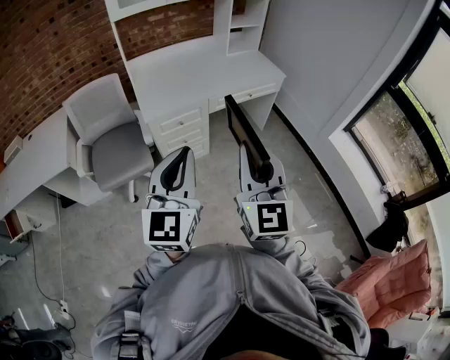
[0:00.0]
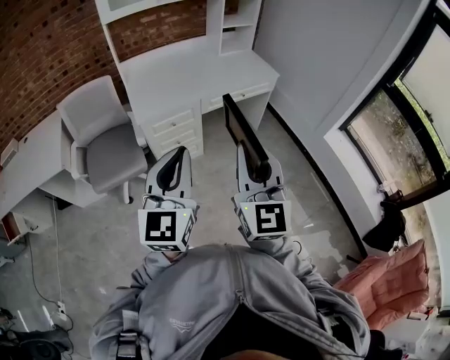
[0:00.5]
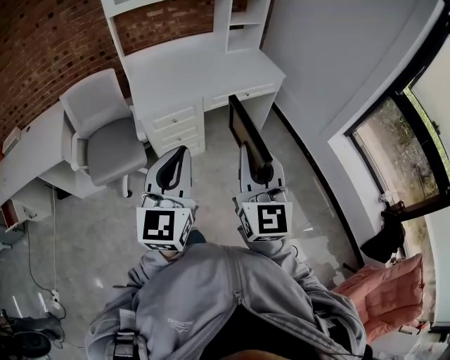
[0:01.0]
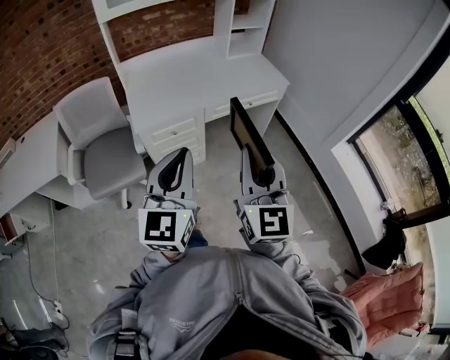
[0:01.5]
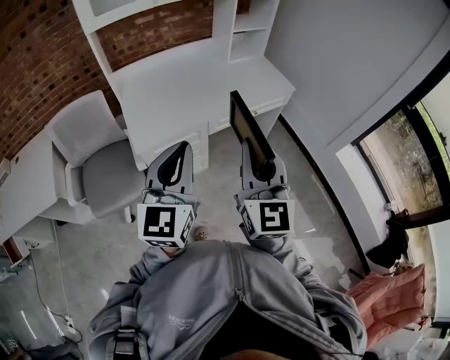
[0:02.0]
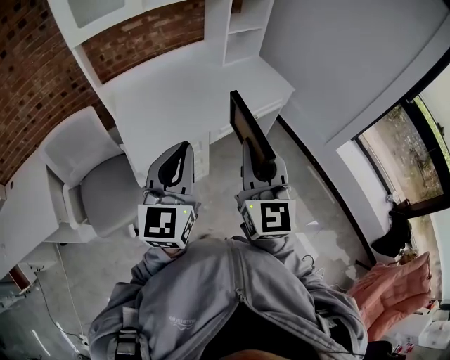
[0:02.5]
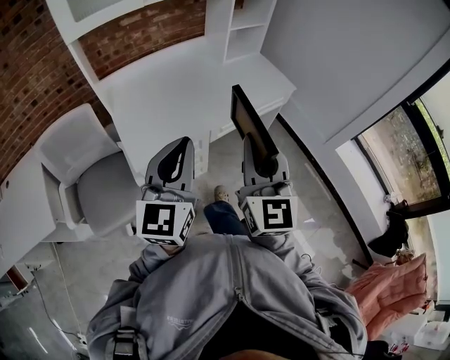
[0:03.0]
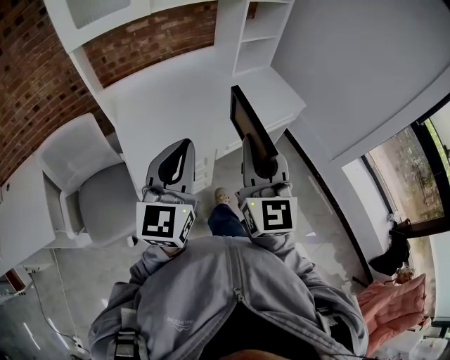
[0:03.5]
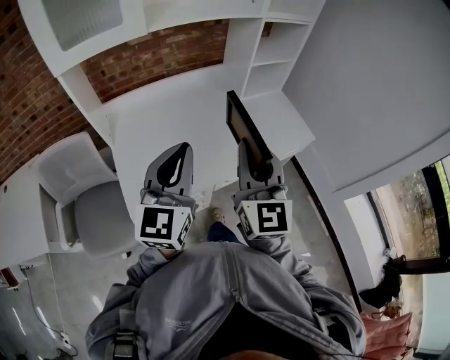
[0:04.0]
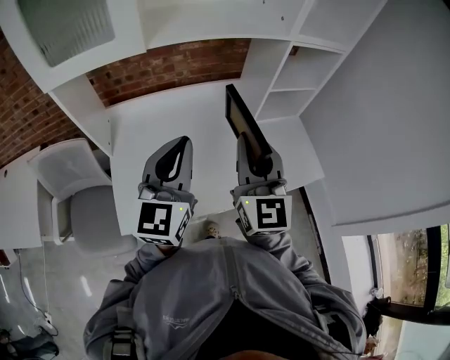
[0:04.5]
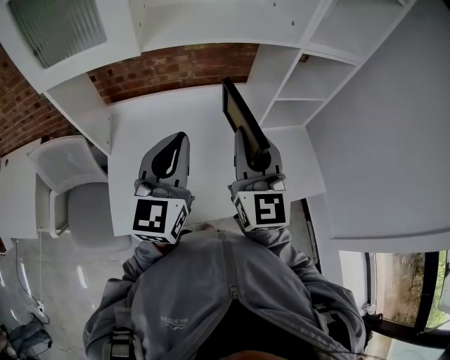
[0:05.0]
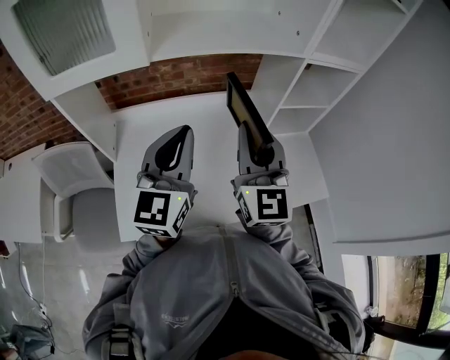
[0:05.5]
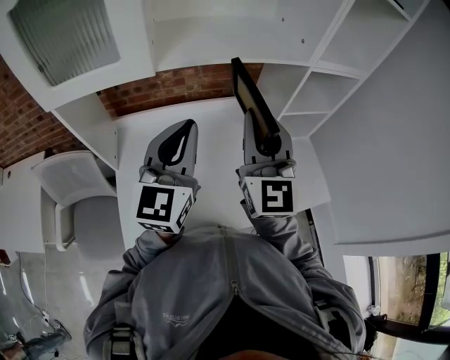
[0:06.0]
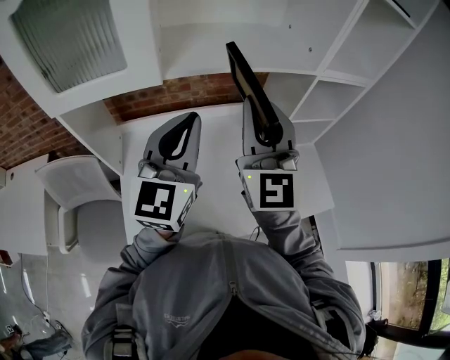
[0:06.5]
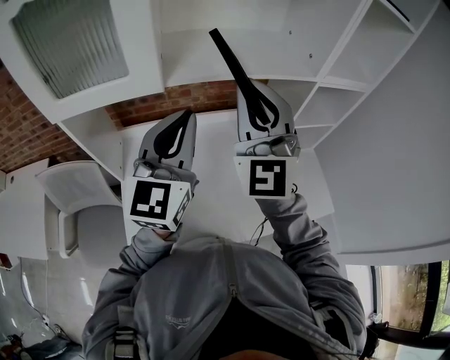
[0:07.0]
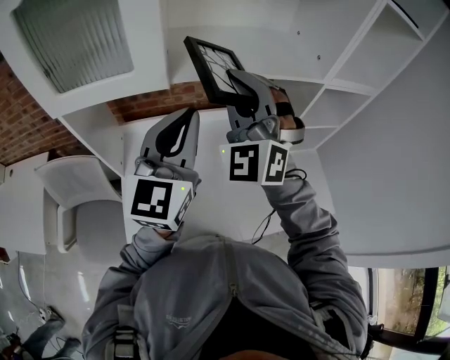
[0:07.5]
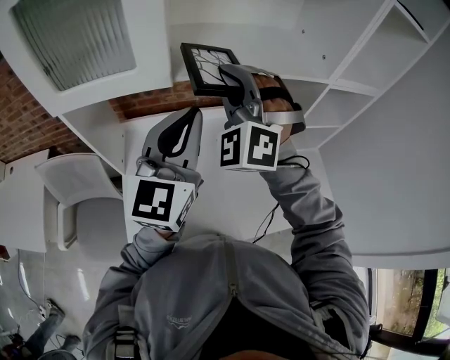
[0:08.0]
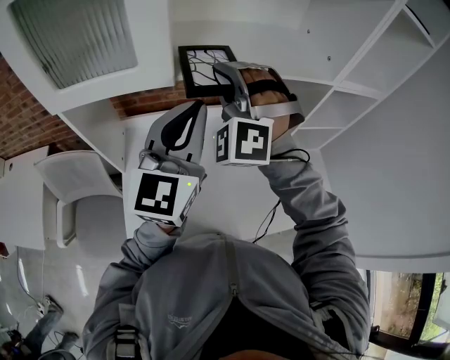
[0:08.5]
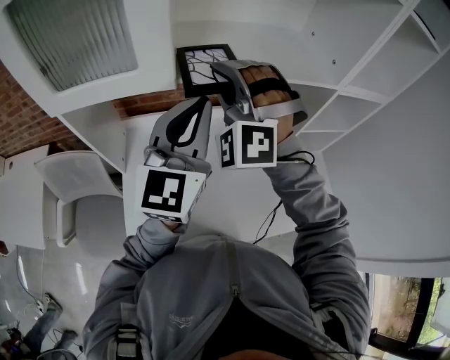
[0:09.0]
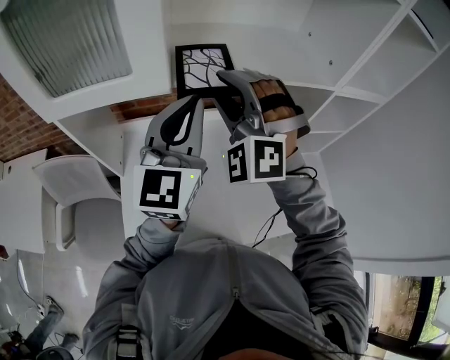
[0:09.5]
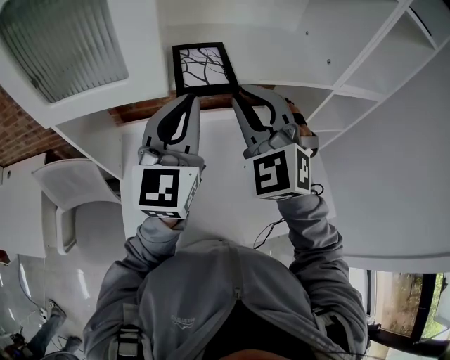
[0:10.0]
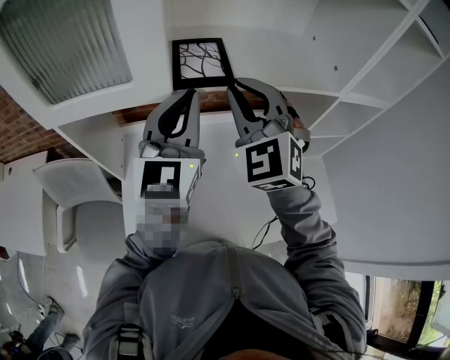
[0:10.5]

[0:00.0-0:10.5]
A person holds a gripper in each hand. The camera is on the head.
0.0 to 2.0 s: The grippers both shift forward by some 25 cm.
2.0 to 4.0 s: Both grippers travel together forward, roughly 35 cm.
4.0 to 6.5 s: The grippers both shift forward by about 30 cm.
6.5 to 8.5 s: The right gripper shifts roughly 15 cm forward and to the left, and twists approximately 60 degrees counterclockwise, seen from behind.
8.5 to 10.5 s: The left gripper is displaced forward by some 5 cm, while the right gripper rotates roughly 30 degrees, and opens, then closes again.

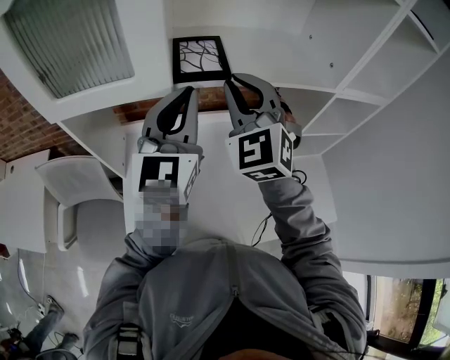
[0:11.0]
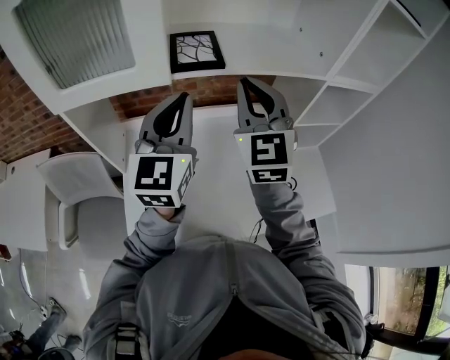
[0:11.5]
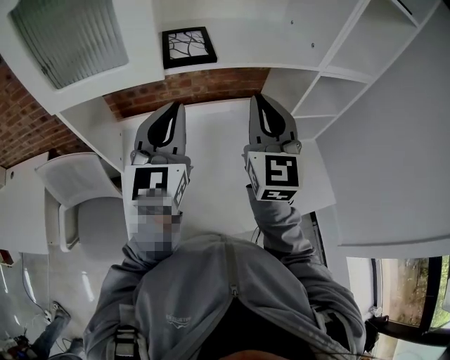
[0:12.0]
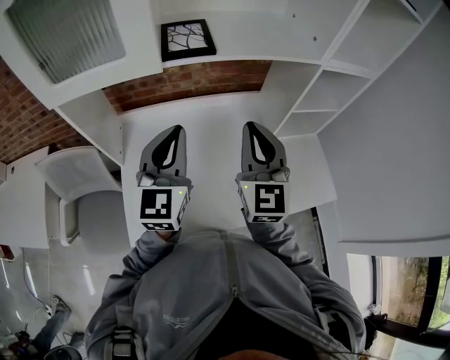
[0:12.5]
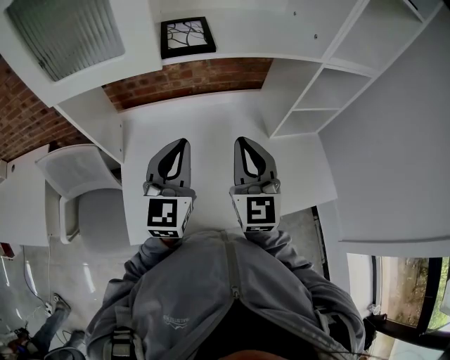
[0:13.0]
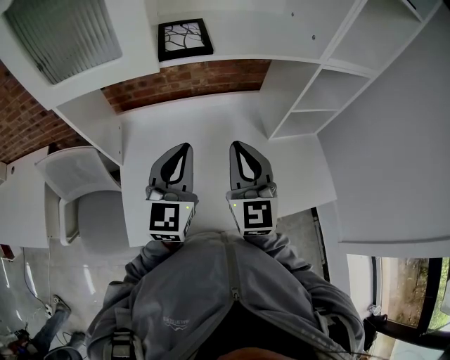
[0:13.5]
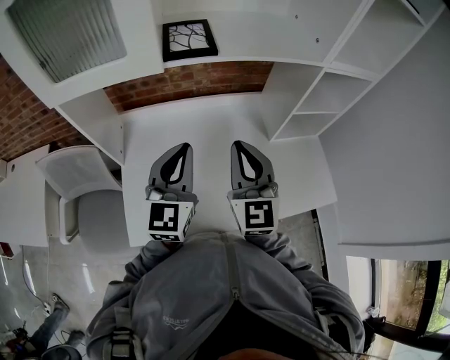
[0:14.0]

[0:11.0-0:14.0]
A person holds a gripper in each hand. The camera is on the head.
11.0 to 12.5 s: The right gripper shifts some 15 cm backward, to the right and downward, and turns by roughly 30 degrees, while the left gripper goes roughly 15 cm backward and downward.
12.5 to 14.0 s: There are only small adjustments of the grippers.

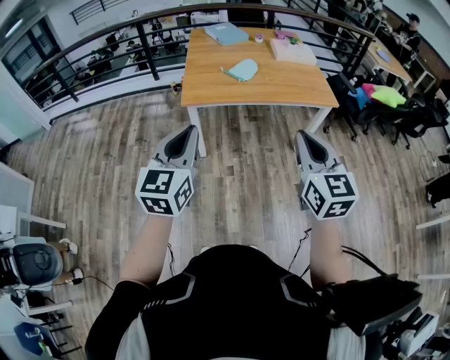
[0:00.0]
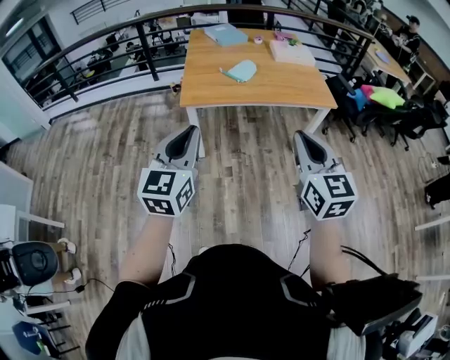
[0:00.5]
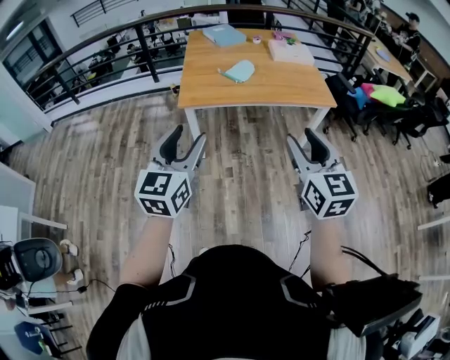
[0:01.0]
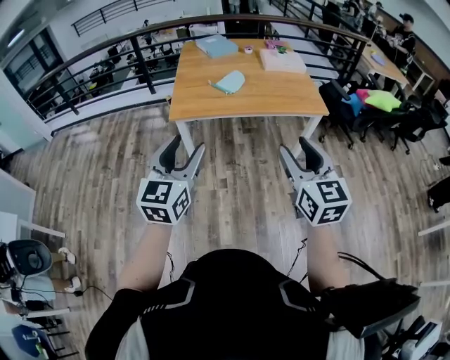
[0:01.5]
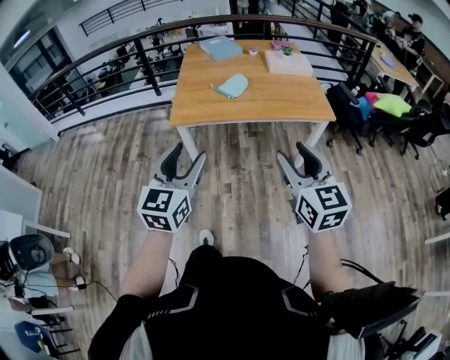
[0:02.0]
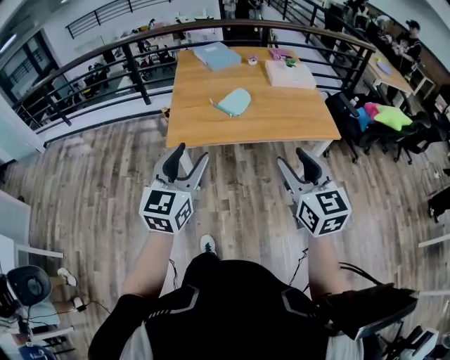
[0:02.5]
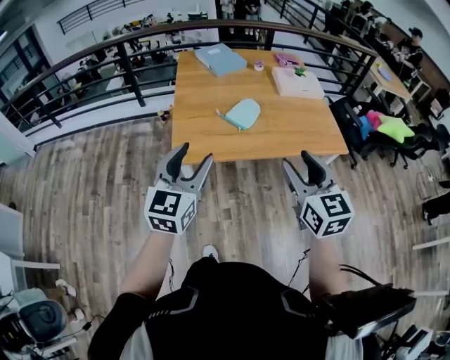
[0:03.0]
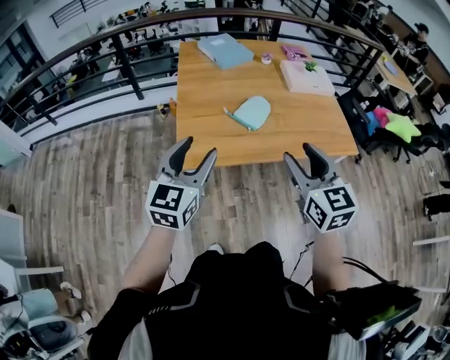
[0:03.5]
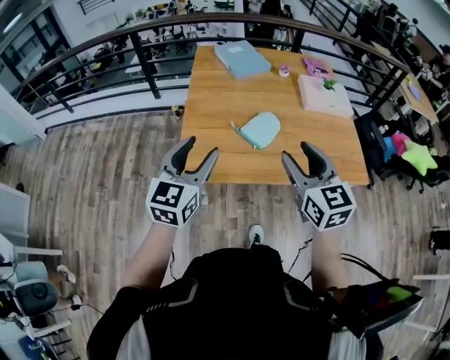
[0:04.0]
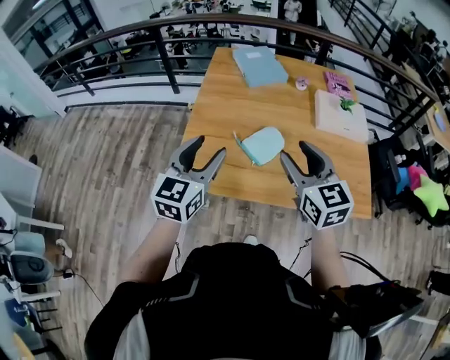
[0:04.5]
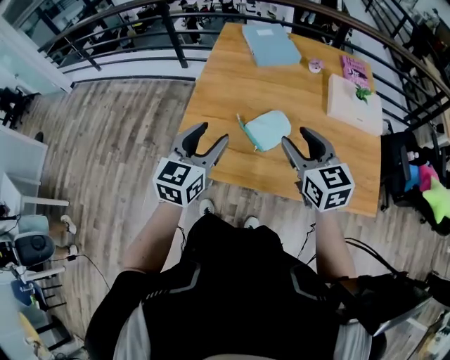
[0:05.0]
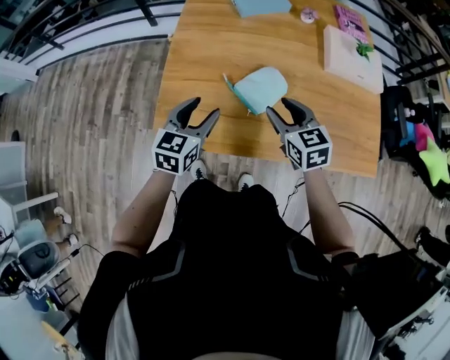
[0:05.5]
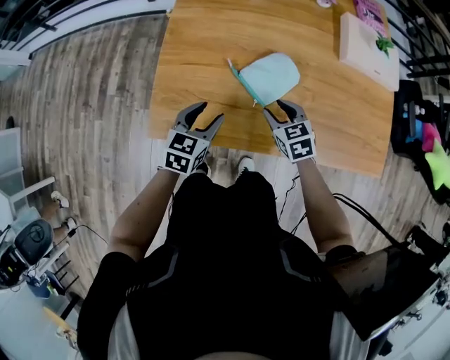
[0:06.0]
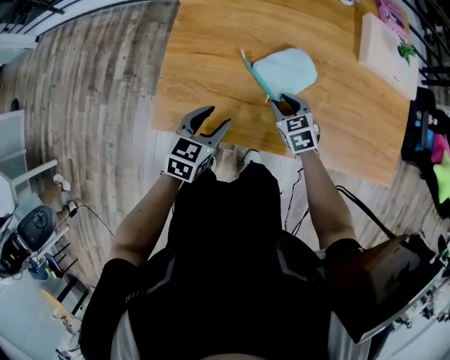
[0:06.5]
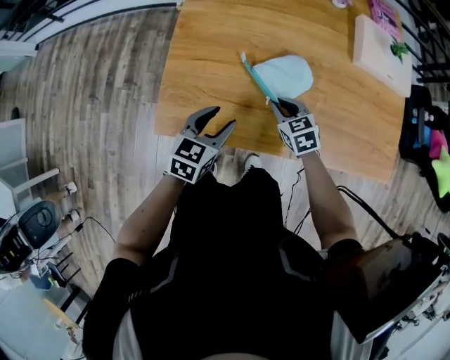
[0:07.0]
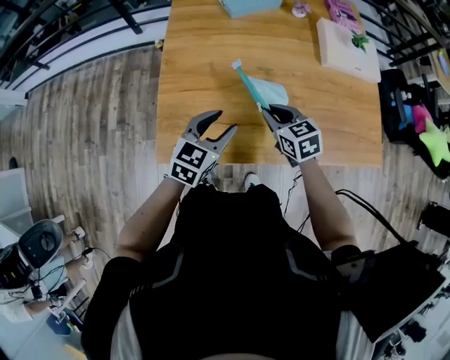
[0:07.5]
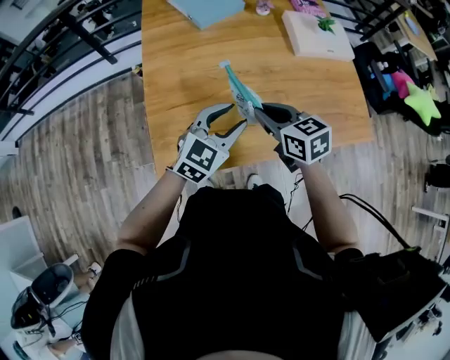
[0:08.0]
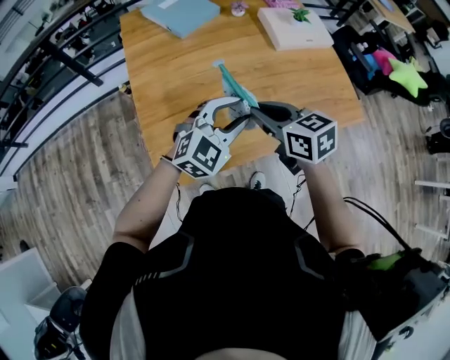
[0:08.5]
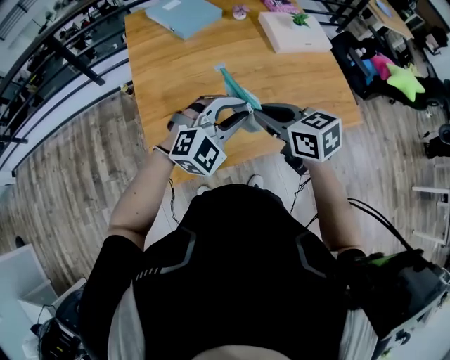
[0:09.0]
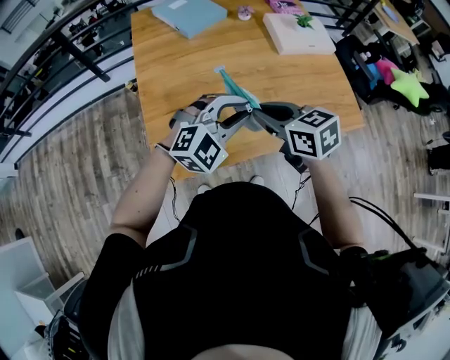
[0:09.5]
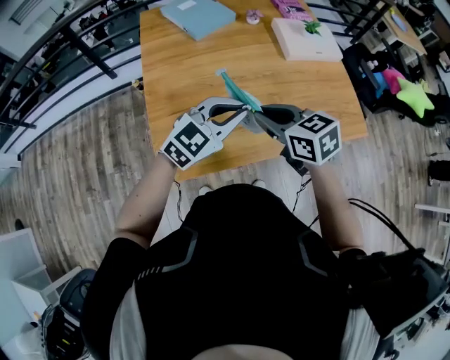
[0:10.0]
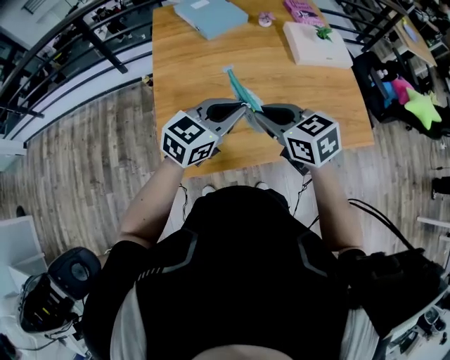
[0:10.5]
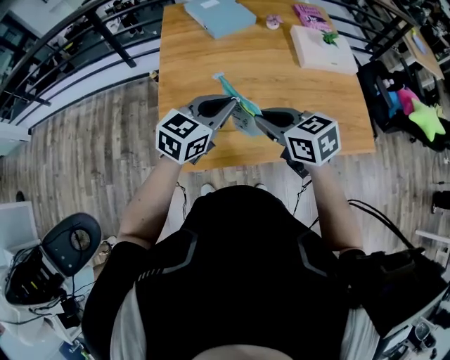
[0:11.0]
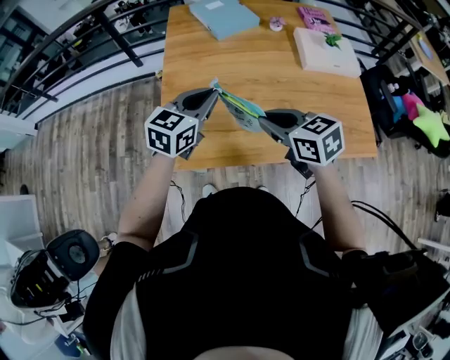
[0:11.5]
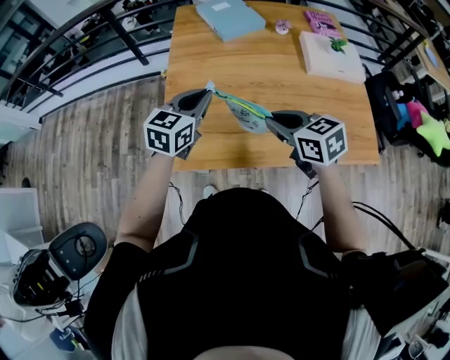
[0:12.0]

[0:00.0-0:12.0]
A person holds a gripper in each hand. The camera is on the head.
0.0 to 2.0 s: The right gripper heads to the right and forward, covering approximately 10 cm, and opens up. The left gripper travels to the right by about 10 cm, and opens its fingers.
2.0 to 4.0 s: The pair of grippers is taken forward, approximately 40 cm.
4.0 to 6.0 s: The two grippers go approximately 35 cm downward and forward. The left gripper turns by approximately 30 degrees, while the right gripper tilts its fingers approximately 30 degrees downward.
6.0 to 8.0 s: The right gripper shifts roughly 15 cm upward, rotates some 20 degrees, and closes up. The left gripper moves upward and to the right, some 15 cm, and swivels some 40 degrees.
8.0 to 10.0 s: The two grippers go some 5 cm upward. The left gripper closes its fingers.
10.0 to 12.0 s: The left gripper heads to the left and forward, covering some 10 cm, and changes its angle by roughly 40 degrees.

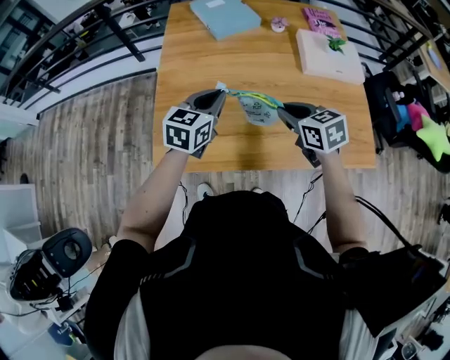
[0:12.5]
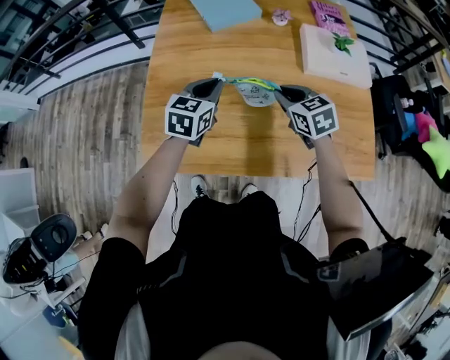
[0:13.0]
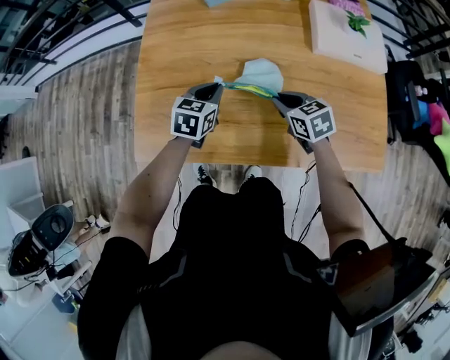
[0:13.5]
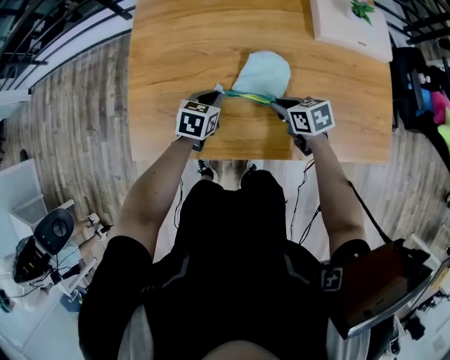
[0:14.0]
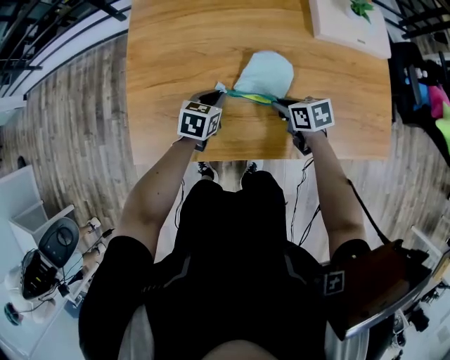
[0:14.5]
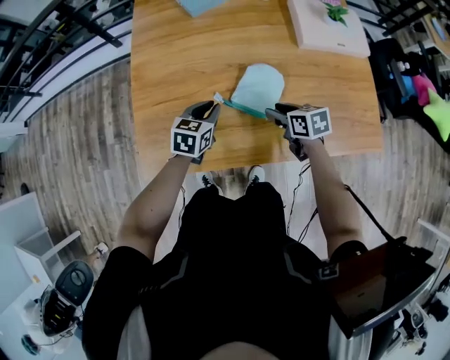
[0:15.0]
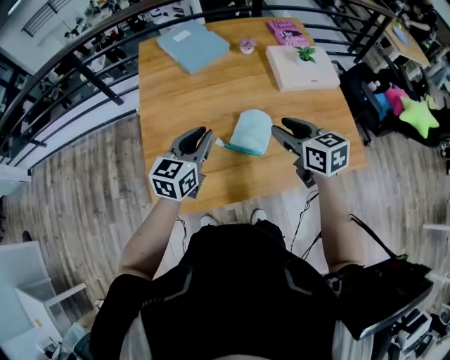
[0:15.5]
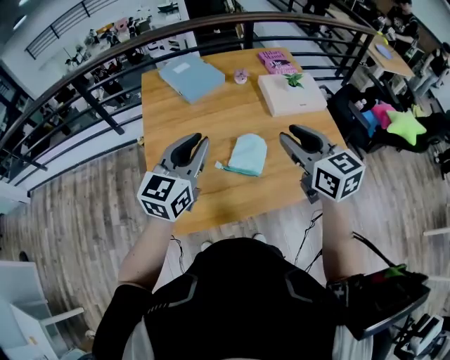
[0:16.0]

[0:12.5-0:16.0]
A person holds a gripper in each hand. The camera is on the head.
12.5 to 14.5 s: The grippers both shift downward by approximately 25 cm. The left gripper swivels about 30 degrees, while the right gripper rotates some 30 degrees.
14.5 to 16.0 s: Both grippers travel together upward, about 40 cm. The right gripper tilts its fingers some 30 degrees upward, and opens up. Meanwhile the left gripper tilts its fingers roughly 40 degrees upward.
